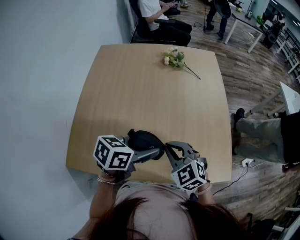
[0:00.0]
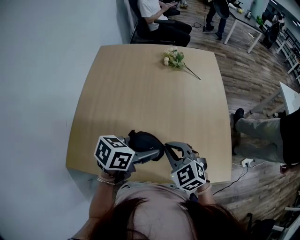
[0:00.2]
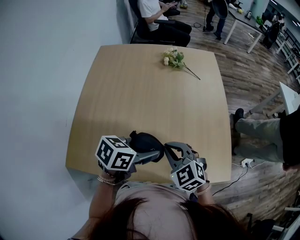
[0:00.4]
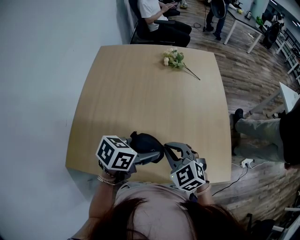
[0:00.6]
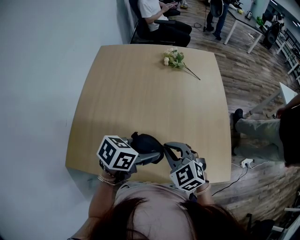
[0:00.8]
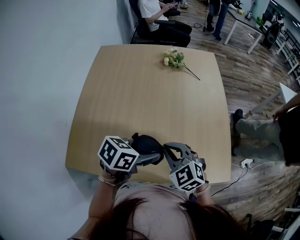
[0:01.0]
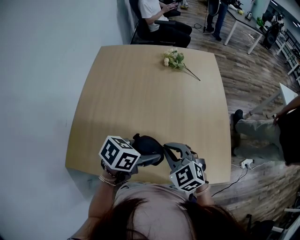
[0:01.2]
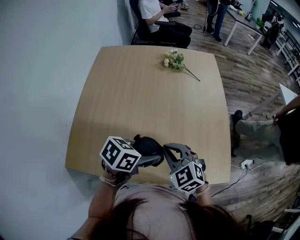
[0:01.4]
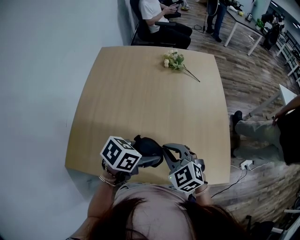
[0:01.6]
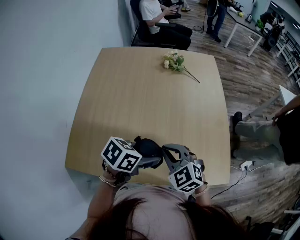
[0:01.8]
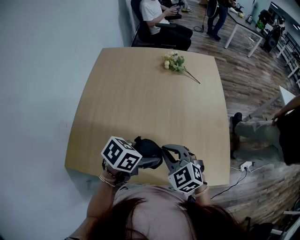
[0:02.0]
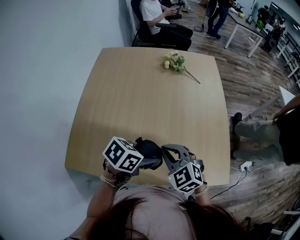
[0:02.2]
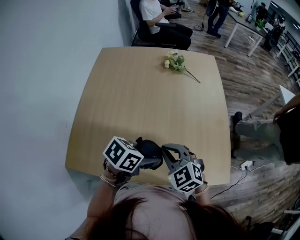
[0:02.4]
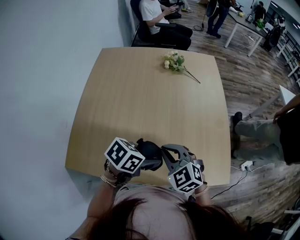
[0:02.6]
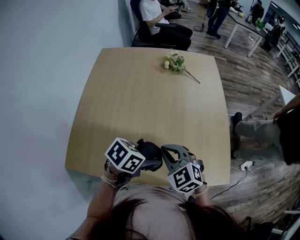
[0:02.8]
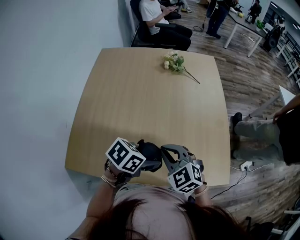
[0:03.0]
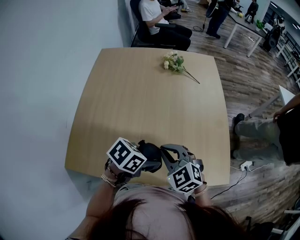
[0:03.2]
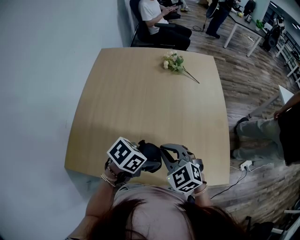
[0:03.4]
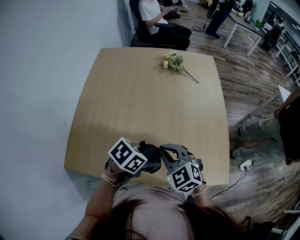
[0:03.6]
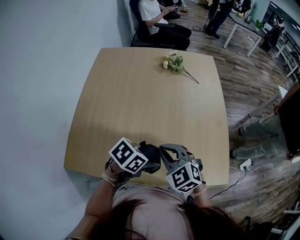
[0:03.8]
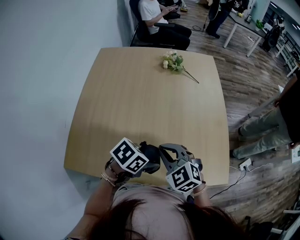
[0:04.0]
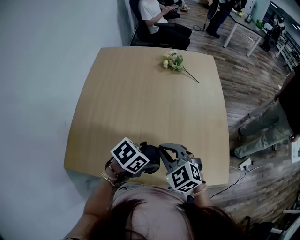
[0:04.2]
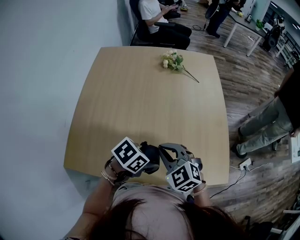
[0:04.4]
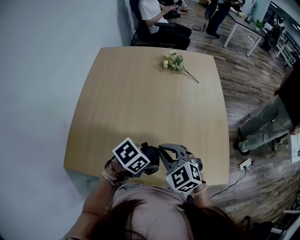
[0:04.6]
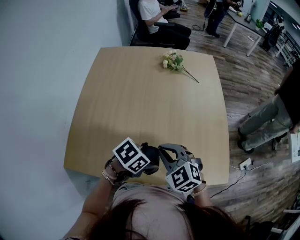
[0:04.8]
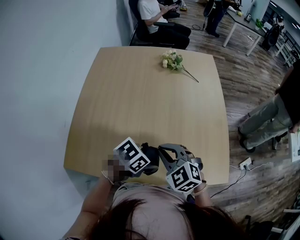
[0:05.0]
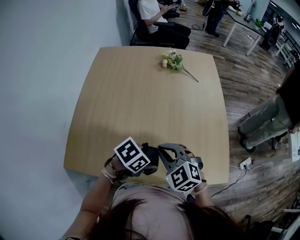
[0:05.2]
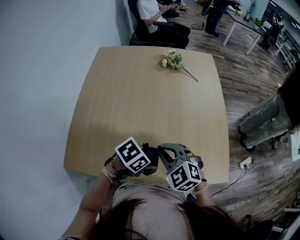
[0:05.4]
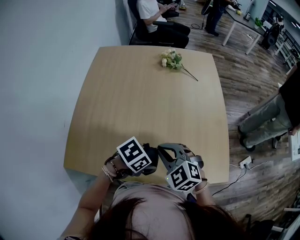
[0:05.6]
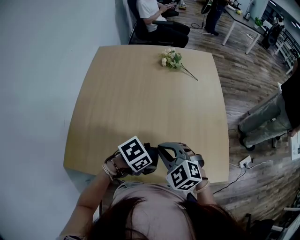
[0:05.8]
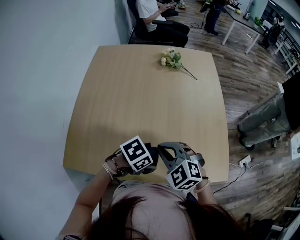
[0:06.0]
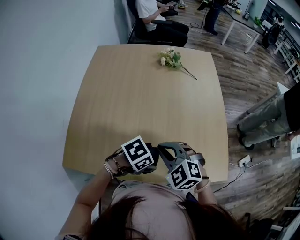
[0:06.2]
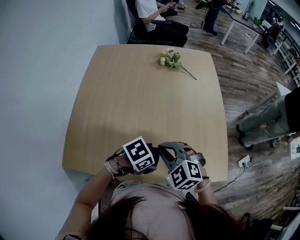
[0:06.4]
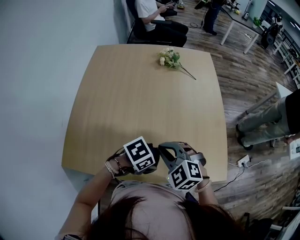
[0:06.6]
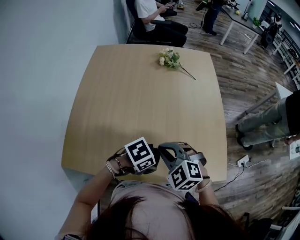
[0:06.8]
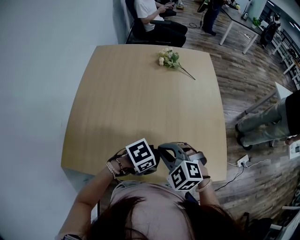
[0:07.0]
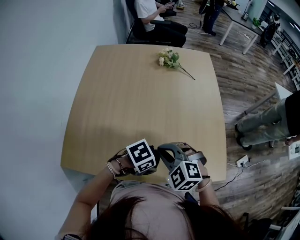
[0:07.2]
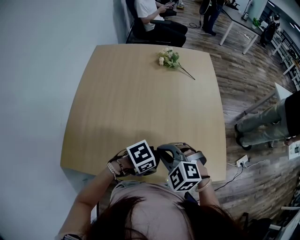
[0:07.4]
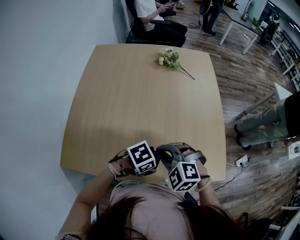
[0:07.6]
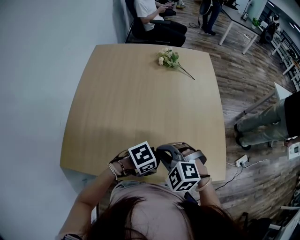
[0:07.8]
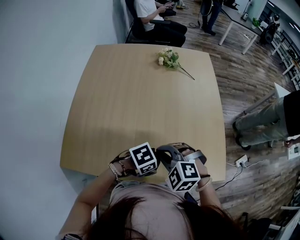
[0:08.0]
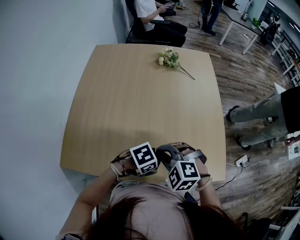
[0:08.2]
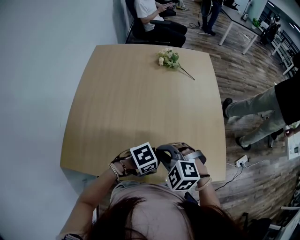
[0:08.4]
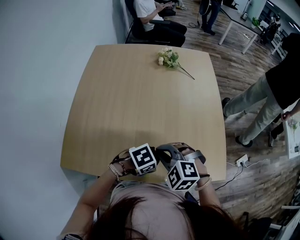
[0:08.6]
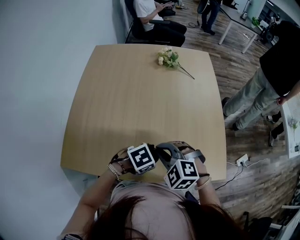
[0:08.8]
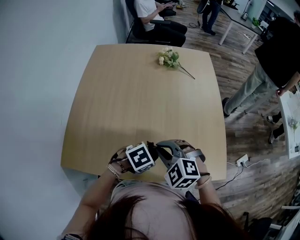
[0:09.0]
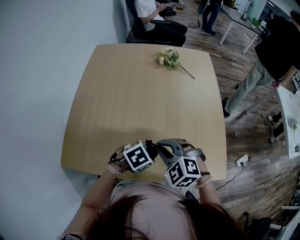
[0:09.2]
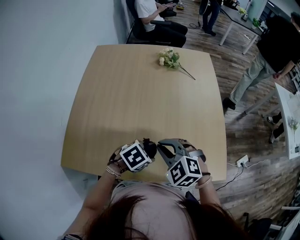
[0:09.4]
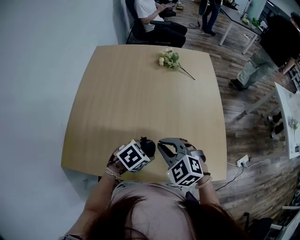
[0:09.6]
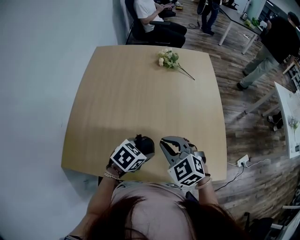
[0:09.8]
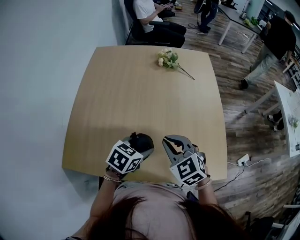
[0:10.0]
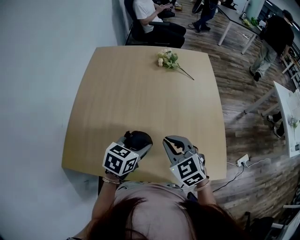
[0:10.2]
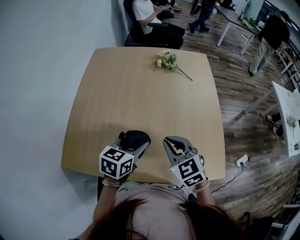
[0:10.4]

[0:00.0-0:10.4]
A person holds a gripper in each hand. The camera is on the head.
0:00.0 to 0:01.4: The grippers stay close to where they were, moving slightly.
0:01.4 to 0:03.0: There are only small adjustments of the grippers.
0:03.0 to 0:04.4: The grippers move only a little.
0:04.4 to 0:06.0: The grippers stay close to where they were, moving slightly.
0:06.0 to 0:09.0: The grippers make only small movements.
0:09.0 to 0:10.4: The right gripper moves approximately 5 cm, and rotates approximately 30 degrees. The left gripper heads upward, covering roughly 10 cm, and angles its fingers upward, by approximately 30 degrees.

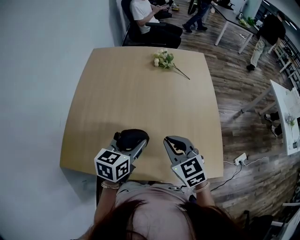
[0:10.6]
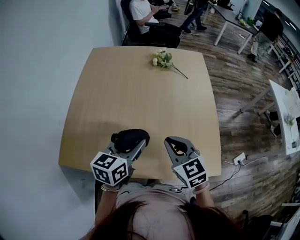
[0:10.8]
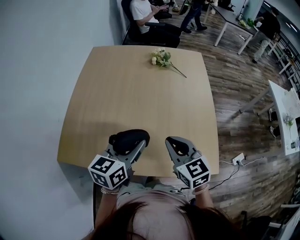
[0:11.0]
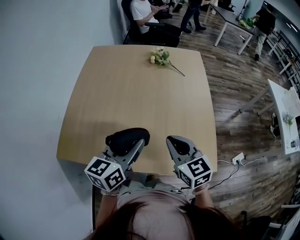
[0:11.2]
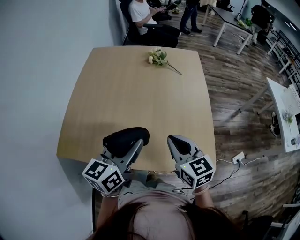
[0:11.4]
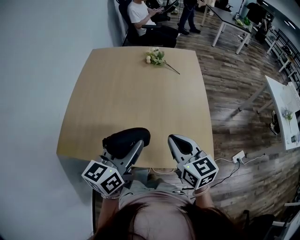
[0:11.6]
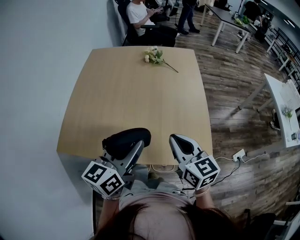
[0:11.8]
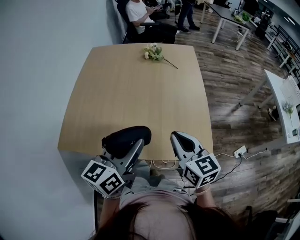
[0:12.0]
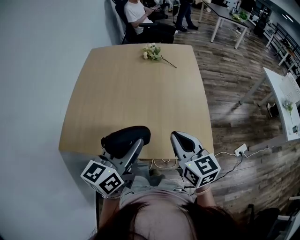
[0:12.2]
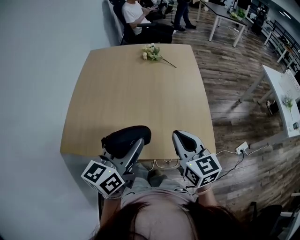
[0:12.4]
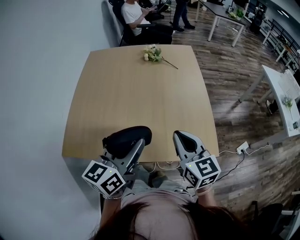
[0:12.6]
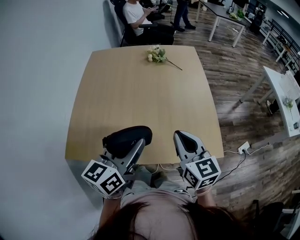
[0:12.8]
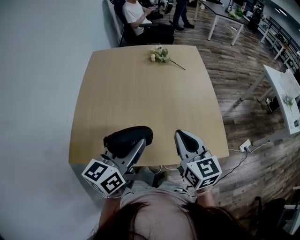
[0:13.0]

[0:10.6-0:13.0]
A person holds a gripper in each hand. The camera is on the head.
0:10.6 to 0:11.8: The left gripper moves backward, upward and to the right, roughly 20 cm, and changes its angle by some 20 degrees. The right gripper is displaced backward, to the right and upward by some 15 cm, and turns by about 30 degrees.
0:11.8 to 0:13.0: Both grippers move to the left, roughly 10 cm.

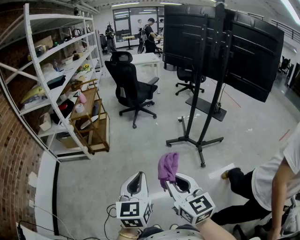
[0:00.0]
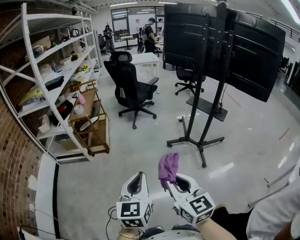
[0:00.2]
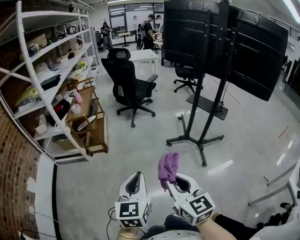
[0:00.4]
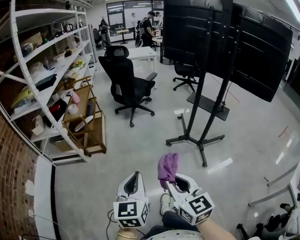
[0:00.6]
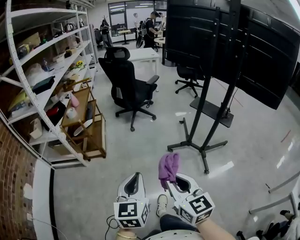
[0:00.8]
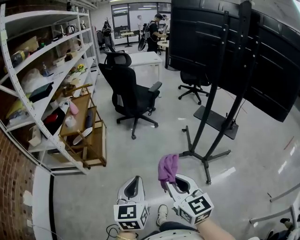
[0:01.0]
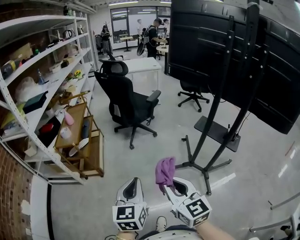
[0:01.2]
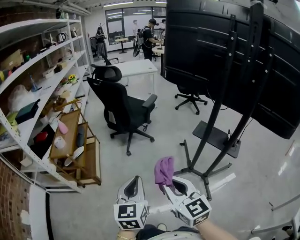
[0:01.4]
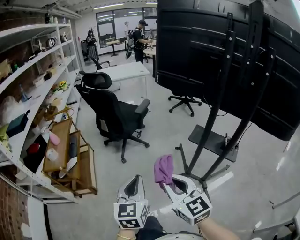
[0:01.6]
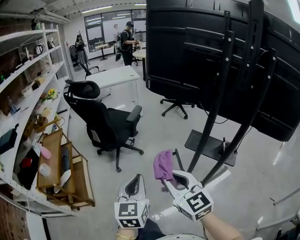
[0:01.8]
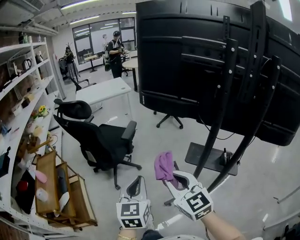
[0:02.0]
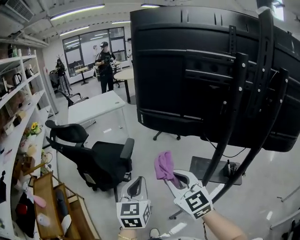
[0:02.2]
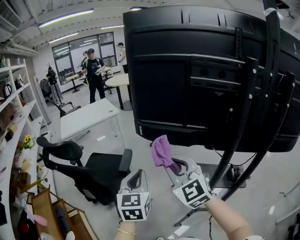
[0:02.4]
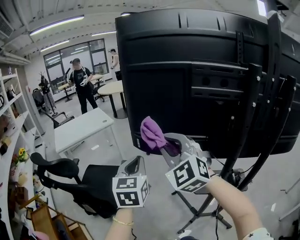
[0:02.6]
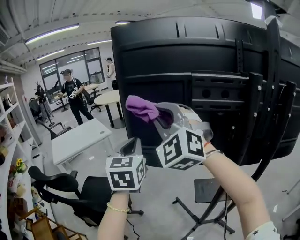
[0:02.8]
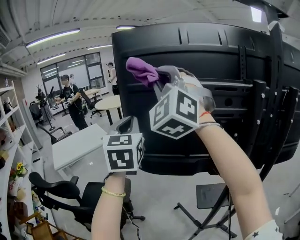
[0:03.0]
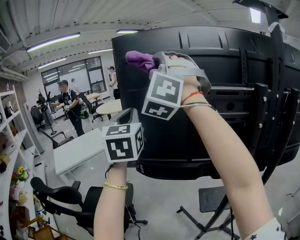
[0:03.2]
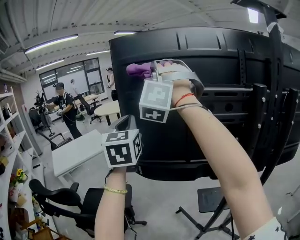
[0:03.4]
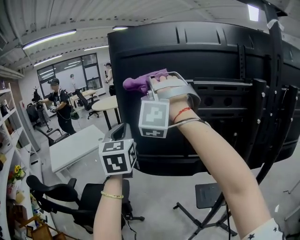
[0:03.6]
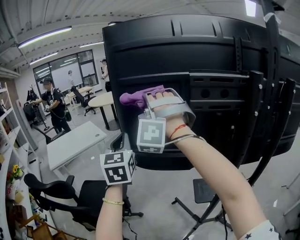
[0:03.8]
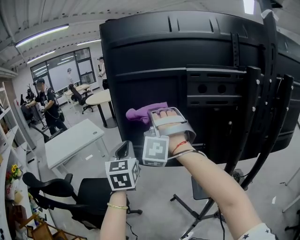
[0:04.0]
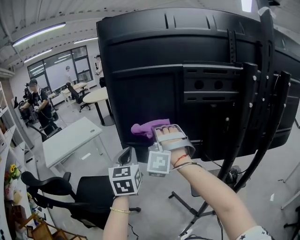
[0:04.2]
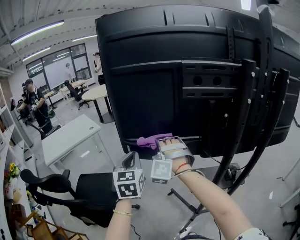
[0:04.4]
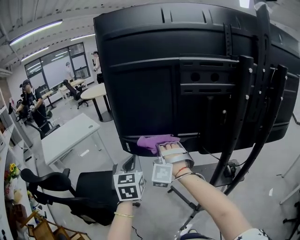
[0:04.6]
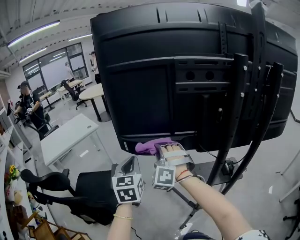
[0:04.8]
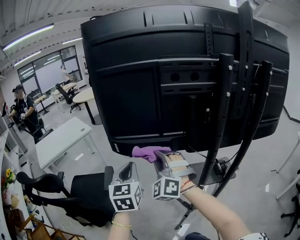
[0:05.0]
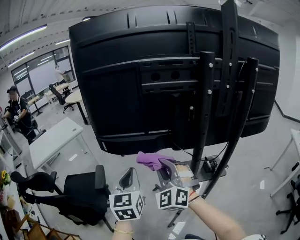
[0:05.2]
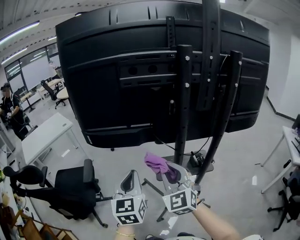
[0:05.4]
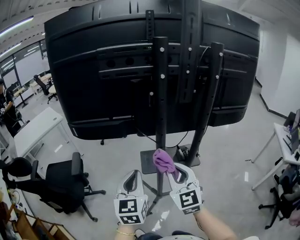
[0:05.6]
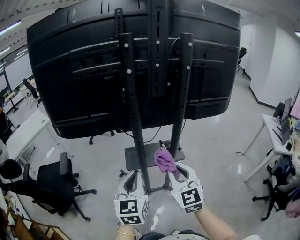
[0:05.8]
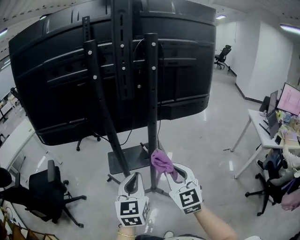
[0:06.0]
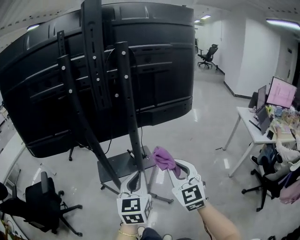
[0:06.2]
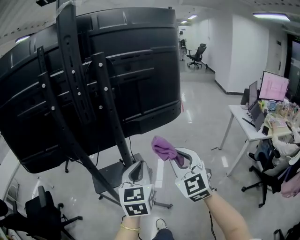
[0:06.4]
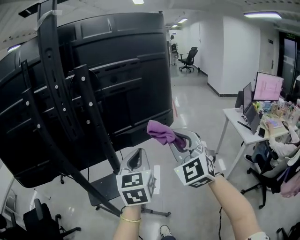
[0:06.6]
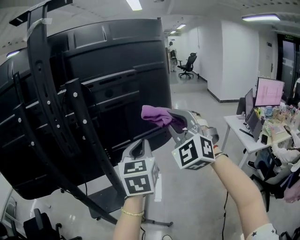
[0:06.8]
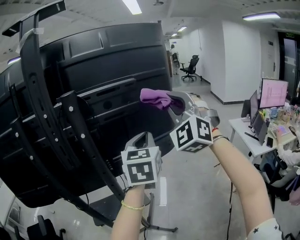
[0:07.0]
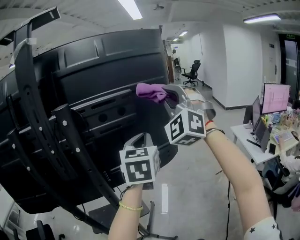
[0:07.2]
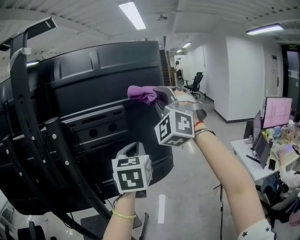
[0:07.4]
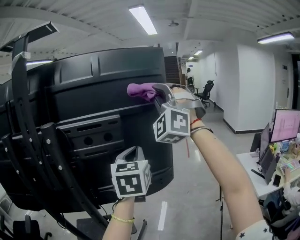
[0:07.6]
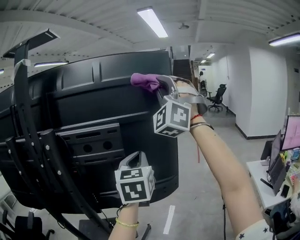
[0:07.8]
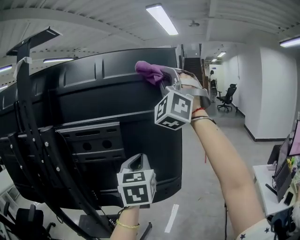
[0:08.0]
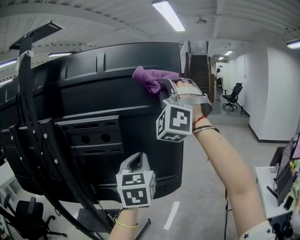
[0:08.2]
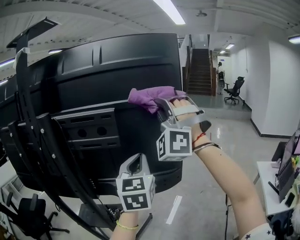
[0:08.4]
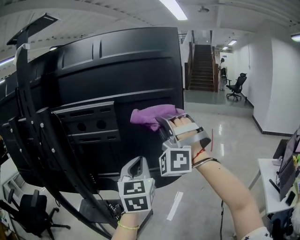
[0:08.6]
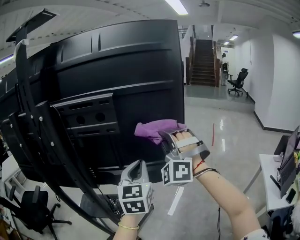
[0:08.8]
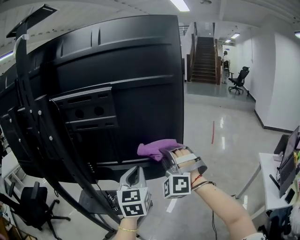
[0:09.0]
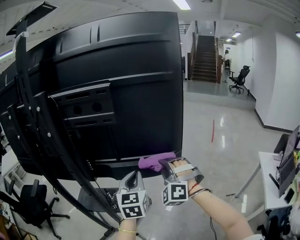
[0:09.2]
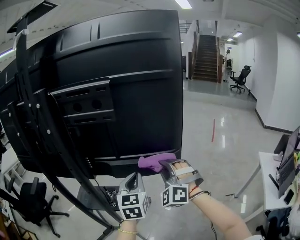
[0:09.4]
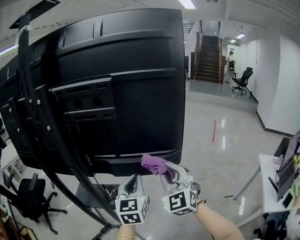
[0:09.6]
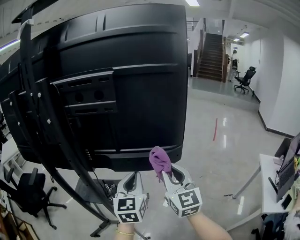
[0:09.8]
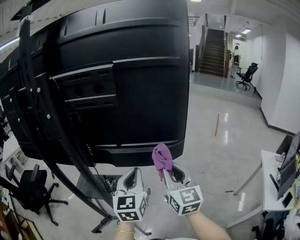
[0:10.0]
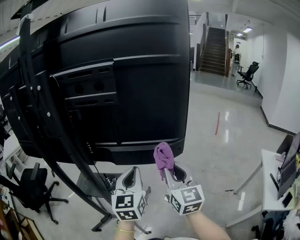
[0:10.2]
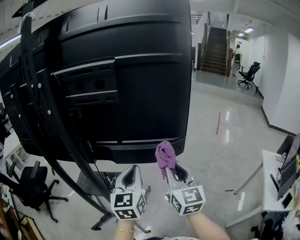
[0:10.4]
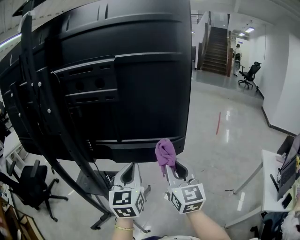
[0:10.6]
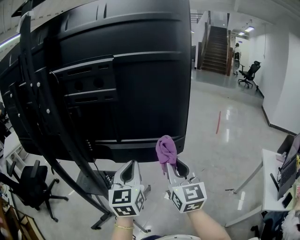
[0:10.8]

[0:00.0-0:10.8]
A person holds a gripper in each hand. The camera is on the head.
0:00.0 to 0:01.6: Both grippers are carried forward, about 60 cm.
0:01.6 to 0:03.0: The pair of grippers is taken some 60 cm. The right gripper changes its angle by about 90 degrees. Meanwhile the left gripper rotates about 40 degrees.
0:03.0 to 0:04.6: The left gripper shifts some 25 cm downward; the right gripper heads downward, covering some 40 cm, and angles its fingers downward, by approximately 30 degrees.
0:04.6 to 0:06.2: The two grippers travel together, to the right and backward, some 60 cm. The right gripper rolls clockwise, seen from behind, by about 60 degrees, while the left gripper changes its angle by some 30 degrees.
0:06.2 to 0:07.8: The pair of grippers is taken forward and to the right, roughly 50 cm. The right gripper heads upward, covering about 50 cm, and twists approximately 60 degrees counterclockwise, seen from behind, while the left gripper moves upward, about 25 cm.
0:07.8 to 0:09.2: The right gripper moves downward, roughly 50 cm, and points its fingers approximately 40 degrees further downward. The left gripper travels downward by about 20 cm.
0:09.2 to 0:10.8: The right gripper moves backward, approximately 5 cm, and twists some 80 degrees clockwise, seen from behind.
